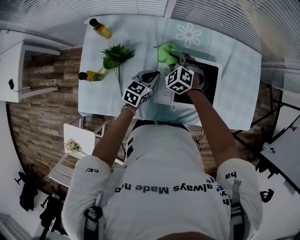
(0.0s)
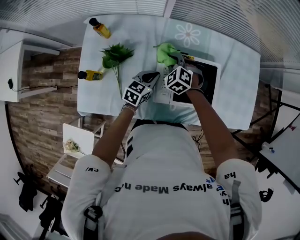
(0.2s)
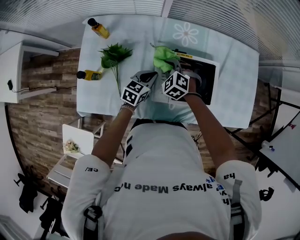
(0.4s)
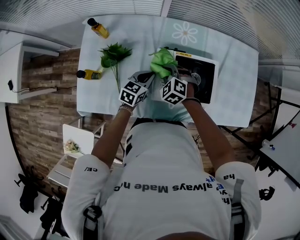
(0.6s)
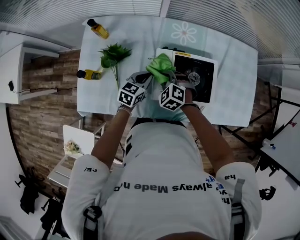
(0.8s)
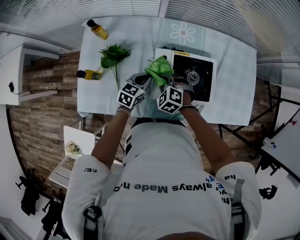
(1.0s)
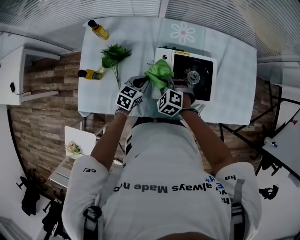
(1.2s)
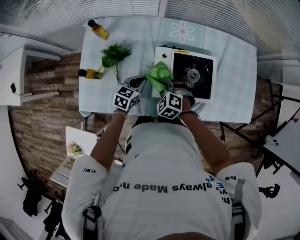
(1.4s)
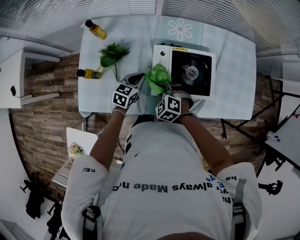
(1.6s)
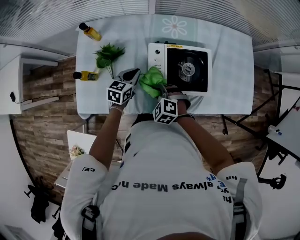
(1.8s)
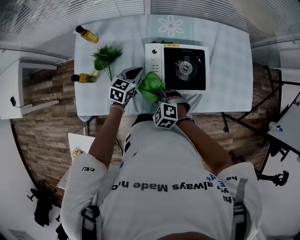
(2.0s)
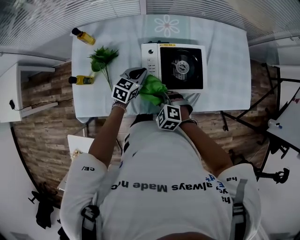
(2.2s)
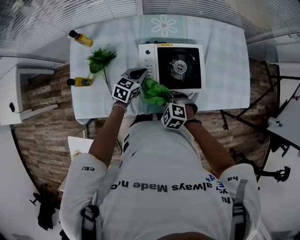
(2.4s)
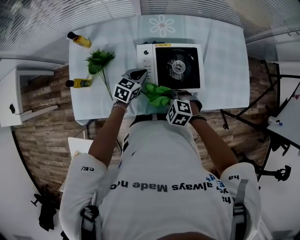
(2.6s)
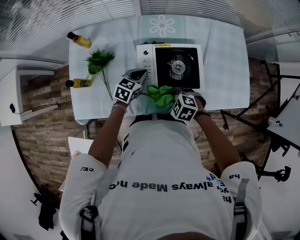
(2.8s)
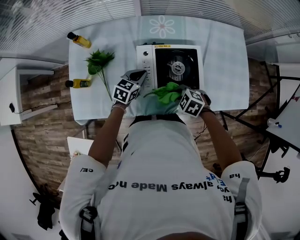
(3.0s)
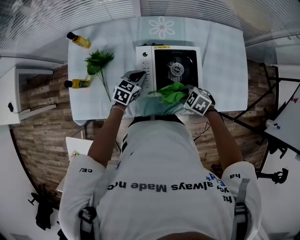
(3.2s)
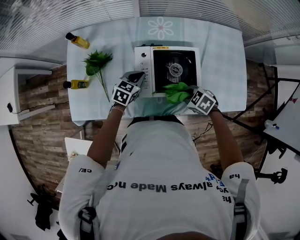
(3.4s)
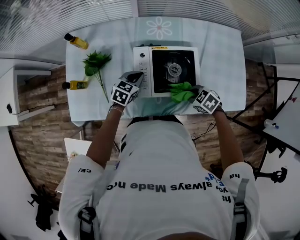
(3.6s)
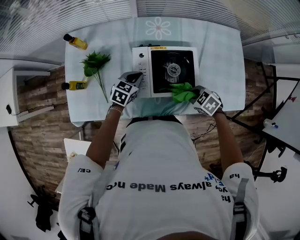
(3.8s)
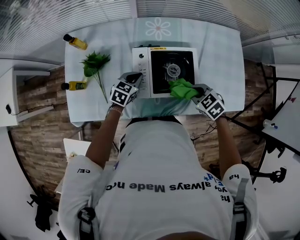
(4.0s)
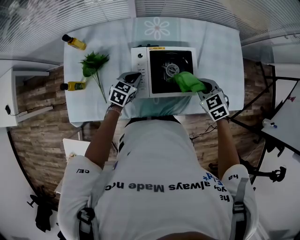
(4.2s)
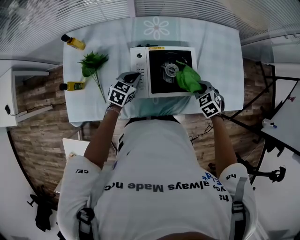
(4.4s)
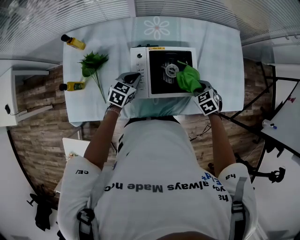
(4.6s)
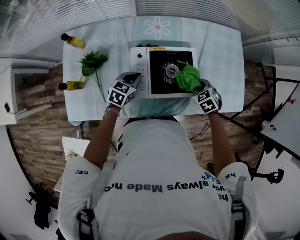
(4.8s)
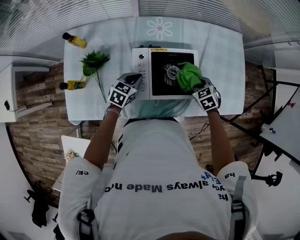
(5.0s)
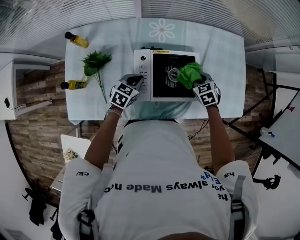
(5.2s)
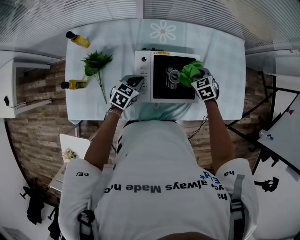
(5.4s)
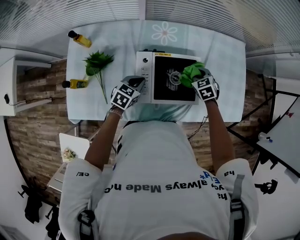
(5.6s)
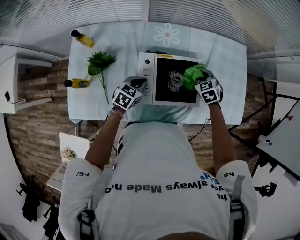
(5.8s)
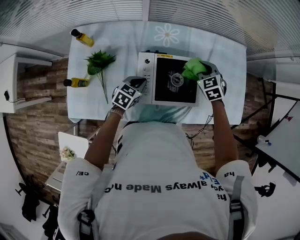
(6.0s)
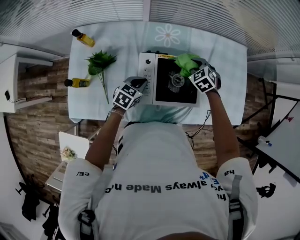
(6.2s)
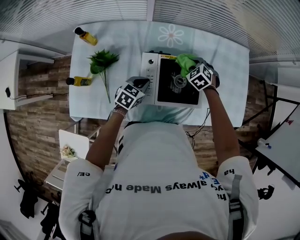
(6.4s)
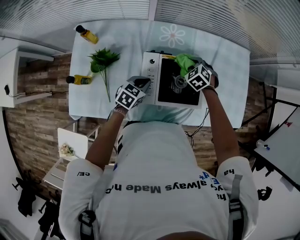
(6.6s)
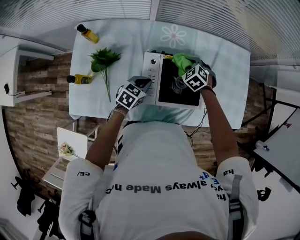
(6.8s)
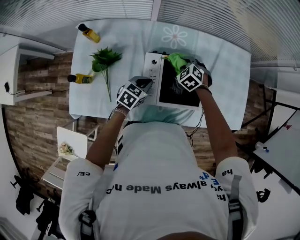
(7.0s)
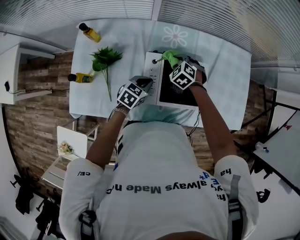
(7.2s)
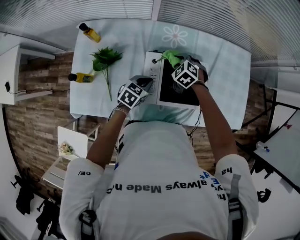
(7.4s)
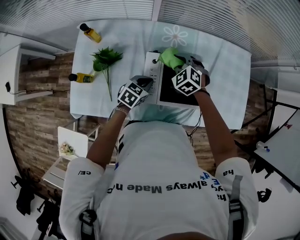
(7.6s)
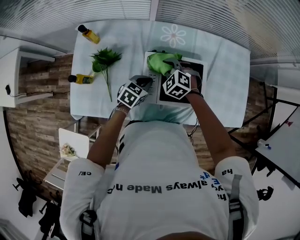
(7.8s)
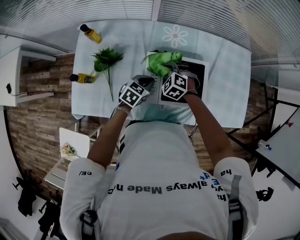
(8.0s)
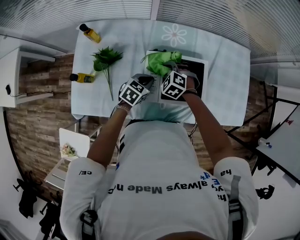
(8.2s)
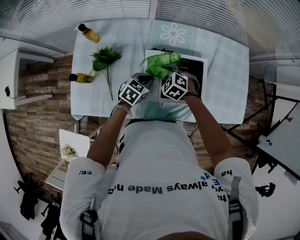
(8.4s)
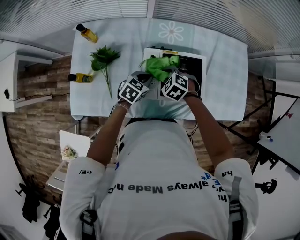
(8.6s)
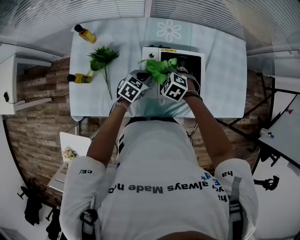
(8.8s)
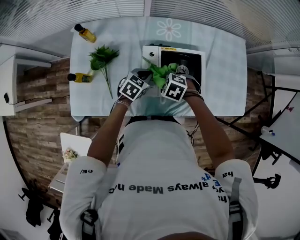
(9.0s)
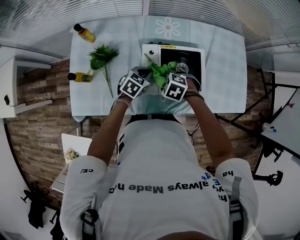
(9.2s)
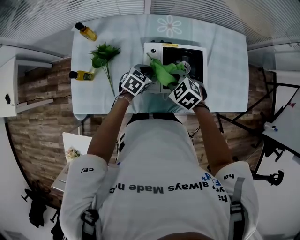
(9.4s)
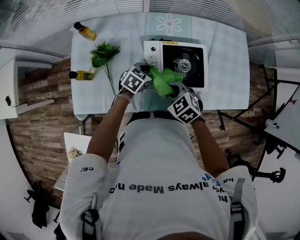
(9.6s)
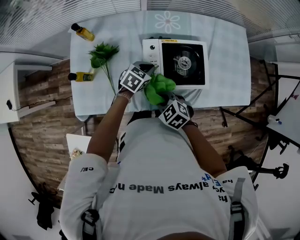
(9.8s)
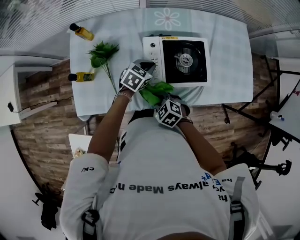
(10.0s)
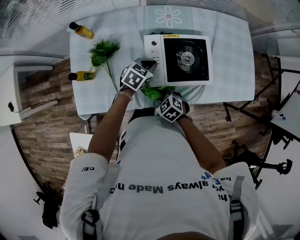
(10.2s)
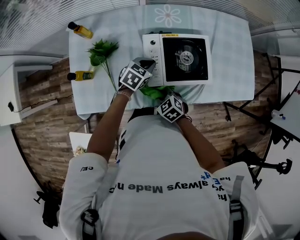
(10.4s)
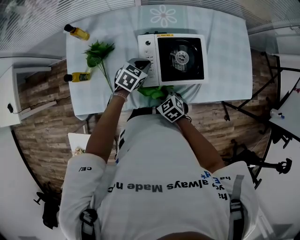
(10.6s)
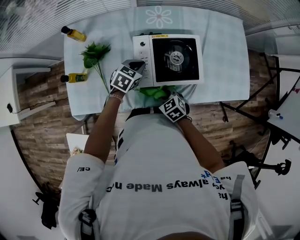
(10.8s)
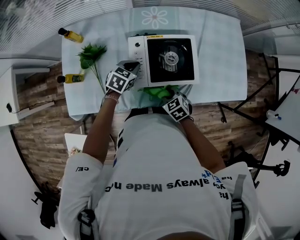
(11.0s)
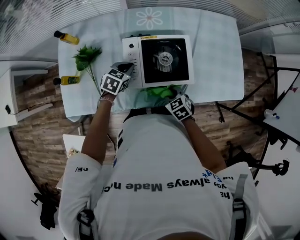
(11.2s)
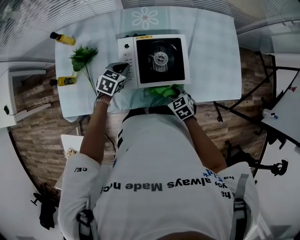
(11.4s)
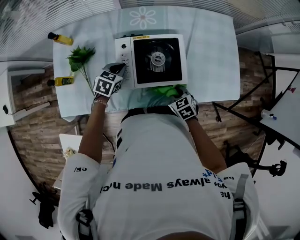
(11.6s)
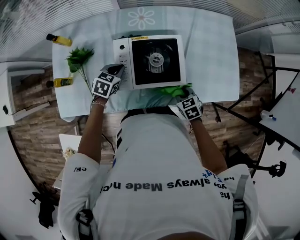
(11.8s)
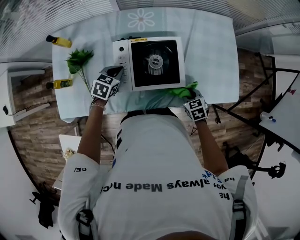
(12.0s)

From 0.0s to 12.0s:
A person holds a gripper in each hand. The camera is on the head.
From 0.0s to 1.6s: The left gripper shifts by approximately 5 cm. Meanwhile the right gripper heads backward, covering about 20 cm.
From 1.6s to 3.0s: The right gripper changes place by about 15 cm, and changes its angle by some 20 degrees, while the left gripper shifts by roughly 10 cm.
From 3.0s to 4.4s: The right gripper goes upward and returns, roughly 10 cm each way, and changes its angle by about 30 degrees.
From 4.4s to 6.0s: The right gripper travels forward and to the left by roughly 15 cm.
From 6.0s to 7.6s: The right gripper heads to the left, covering some 15 cm, and swivels roughly 20 degrees.
From 7.6s to 9.0s: The right gripper shifts by about 15 cm, and rotates some 30 degrees.
From 9.0s to 10.4s: The right gripper moves roughly 10 cm, and rotates approximately 30 degrees.
From 10.4s to 12.0s: The right gripper shifts approximately 30 cm to the right, and rotates some 20 degrees.

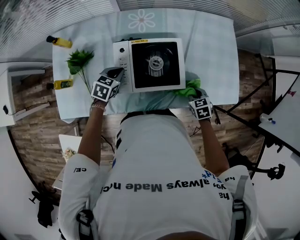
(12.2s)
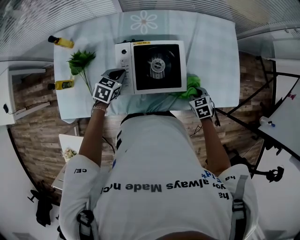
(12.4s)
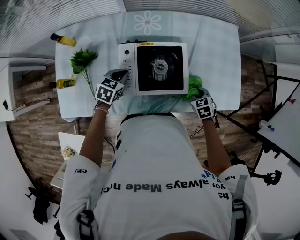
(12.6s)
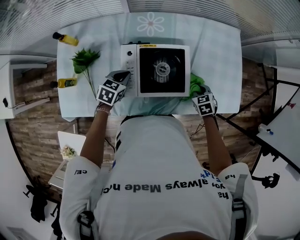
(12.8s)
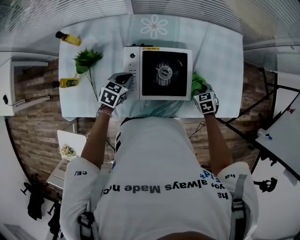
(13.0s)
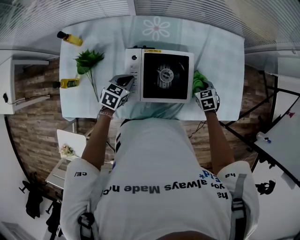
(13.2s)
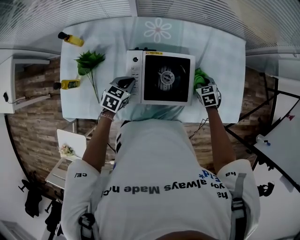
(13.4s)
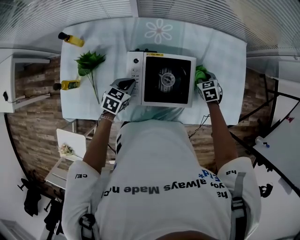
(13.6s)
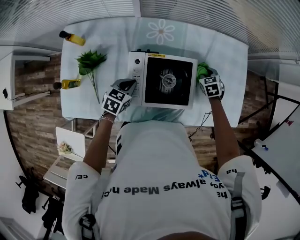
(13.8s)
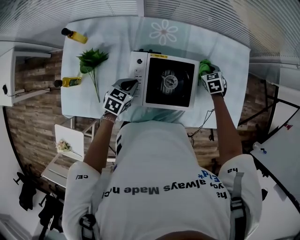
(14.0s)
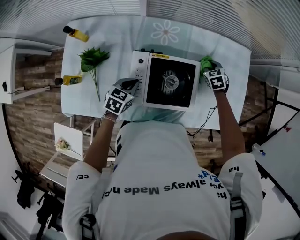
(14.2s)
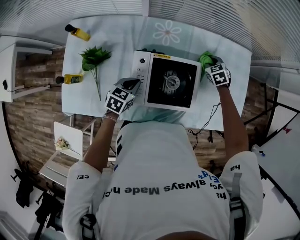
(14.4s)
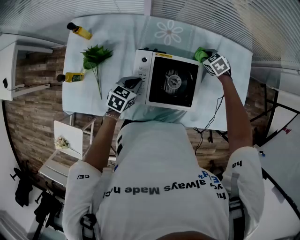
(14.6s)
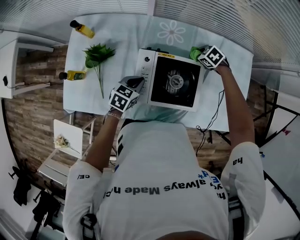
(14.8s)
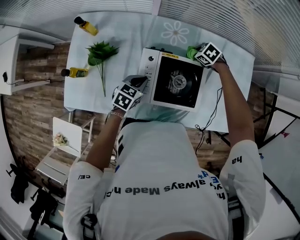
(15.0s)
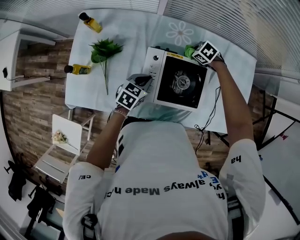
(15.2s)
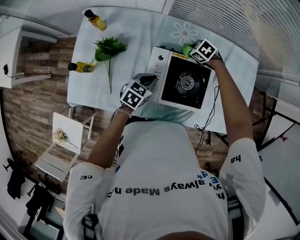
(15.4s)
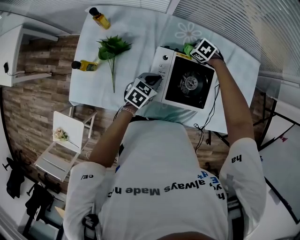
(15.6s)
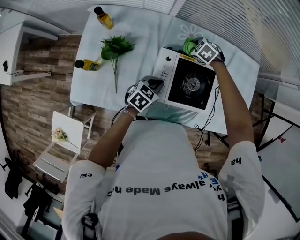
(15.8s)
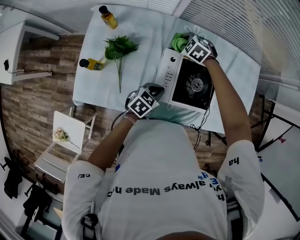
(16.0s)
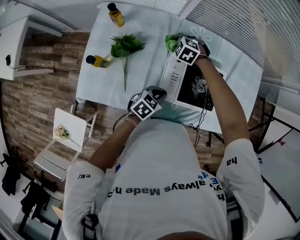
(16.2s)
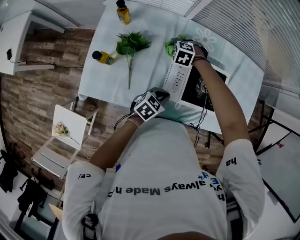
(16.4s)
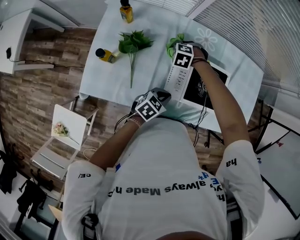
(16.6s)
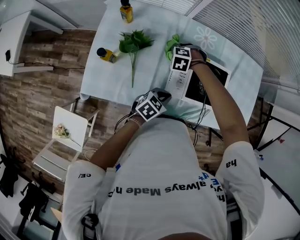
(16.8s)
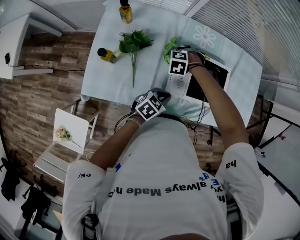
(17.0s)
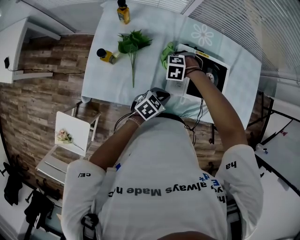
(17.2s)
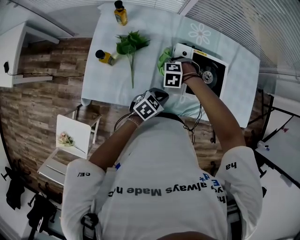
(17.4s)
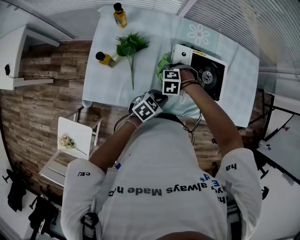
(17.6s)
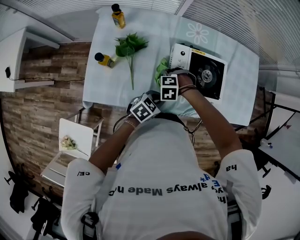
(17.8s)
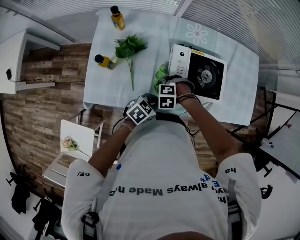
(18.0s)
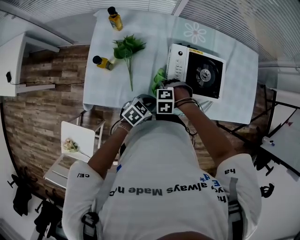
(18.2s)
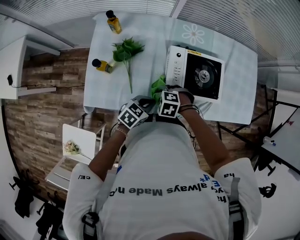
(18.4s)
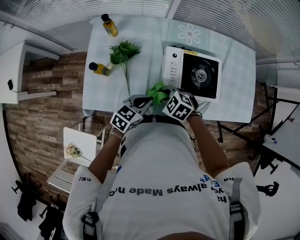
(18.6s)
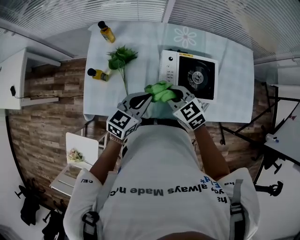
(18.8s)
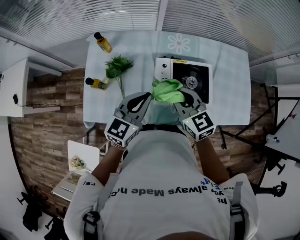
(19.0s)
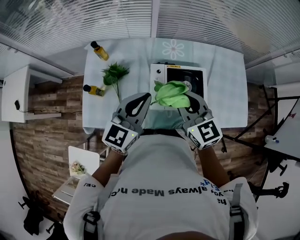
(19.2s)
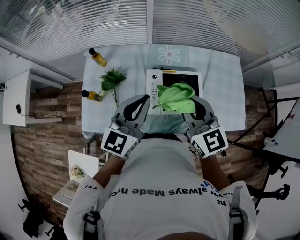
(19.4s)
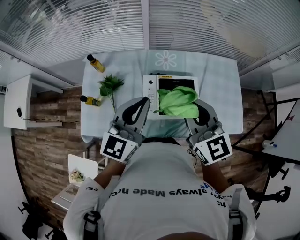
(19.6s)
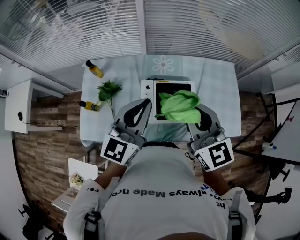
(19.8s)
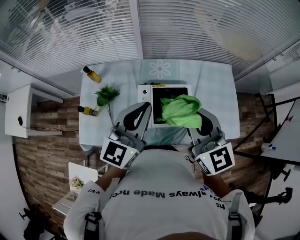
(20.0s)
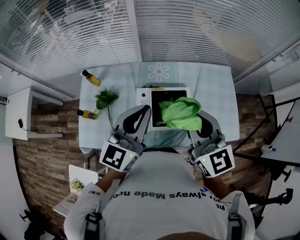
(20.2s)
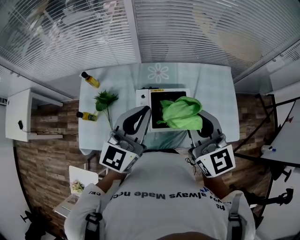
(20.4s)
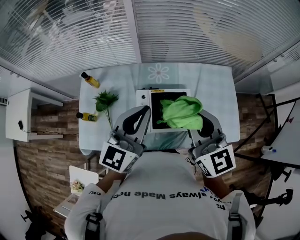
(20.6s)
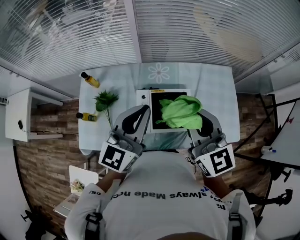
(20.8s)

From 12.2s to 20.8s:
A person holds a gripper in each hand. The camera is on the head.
From 12.2s to 13.6s: The right gripper travels forward by some 20 cm.
From 13.6s to 15.0s: The right gripper ends up approximately 15 cm from where it was, and swivels roughly 40 degrees.
From 15.0s to 16.6s: The left gripper ends up roughly 10 cm from where it was; the right gripper ends up about 30 cm from where it was, and turns by about 40 degrees.
From 16.6s to 18.0s: The right gripper ends up some 20 cm from where it was. Meanwhile the left gripper ends up some 5 cm from where it was.
From 18.0s to 19.4s: The two grippers go approximately 35 cm upward. The right gripper tips its fingers upward by roughly 70 degrees, while the left gripper tilts its fingers approximately 40 degrees upward.
From 19.4s to 20.8s: The left gripper travels upward and to the right by approximately 10 cm. Meanwhile the right gripper goes some 10 cm to the right and upward.

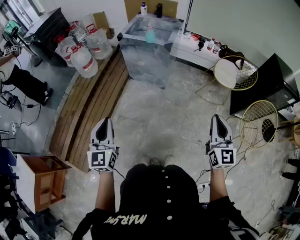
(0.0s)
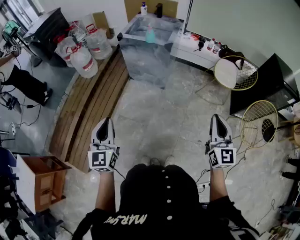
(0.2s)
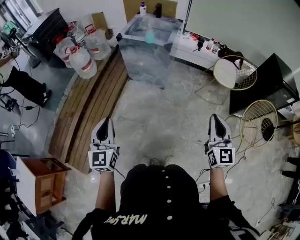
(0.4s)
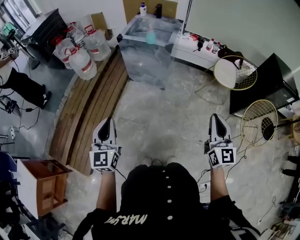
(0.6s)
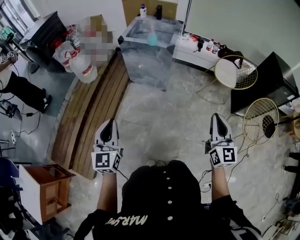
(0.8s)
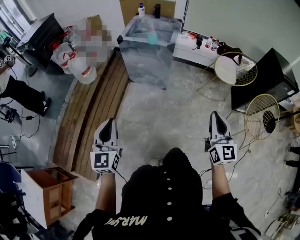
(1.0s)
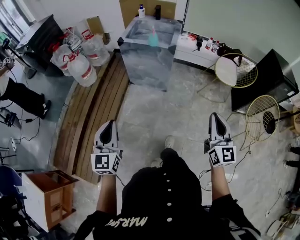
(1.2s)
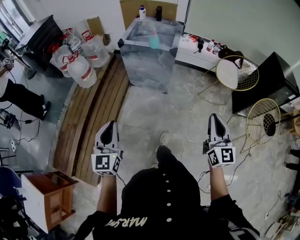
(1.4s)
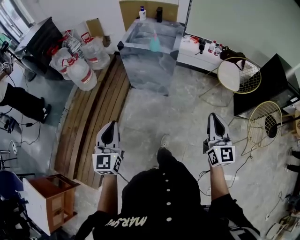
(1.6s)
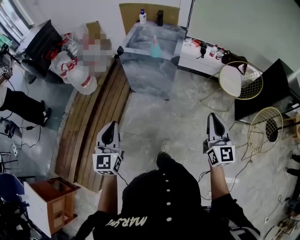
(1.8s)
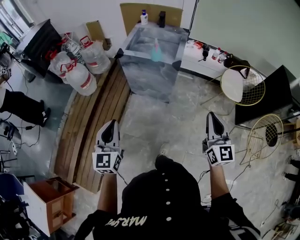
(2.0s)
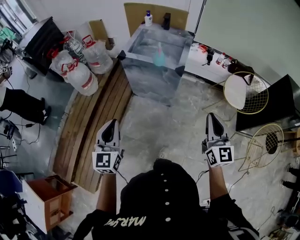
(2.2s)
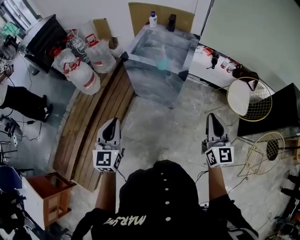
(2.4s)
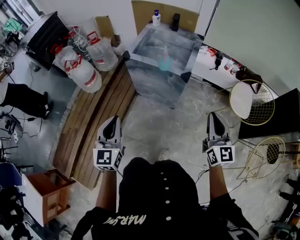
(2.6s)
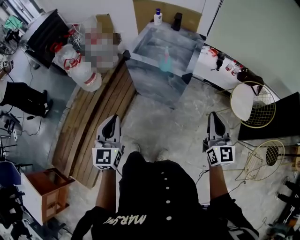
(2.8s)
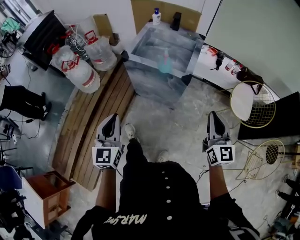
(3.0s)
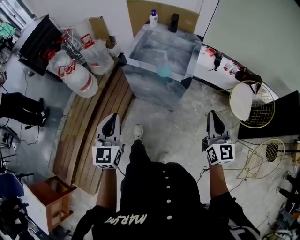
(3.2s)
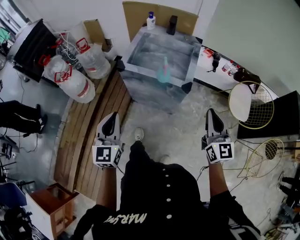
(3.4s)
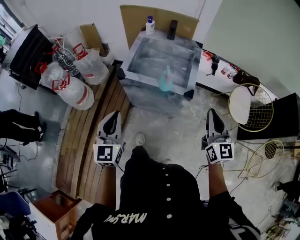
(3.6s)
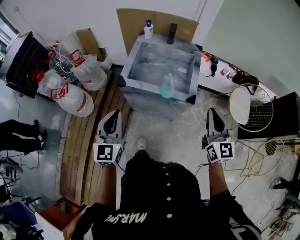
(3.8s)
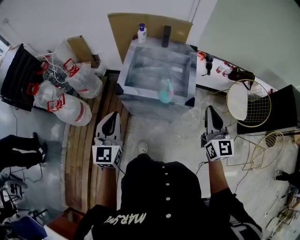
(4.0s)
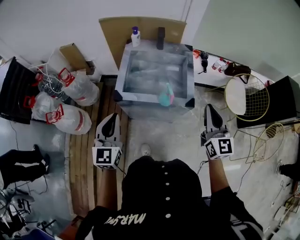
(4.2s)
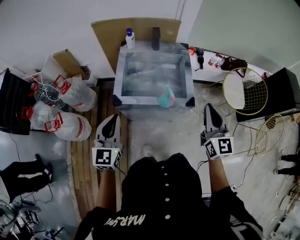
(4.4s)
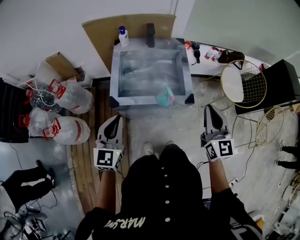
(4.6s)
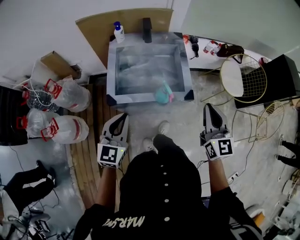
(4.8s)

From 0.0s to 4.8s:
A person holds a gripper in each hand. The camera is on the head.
From 0.0s to 1.6s: The right gripper goes about 15 cm to the left and forward. The left gripper moves forward and to the left, some 15 cm.
From 1.6s to 3.2s: Both grippers travel together forward, some 35 cm.
From 3.2s to 4.8s: The left gripper moves some 30 cm, and changes its angle by roughly 40 degrees, while the right gripper ends up about 20 cm from where it was, and changes its angle by about 20 degrees.
